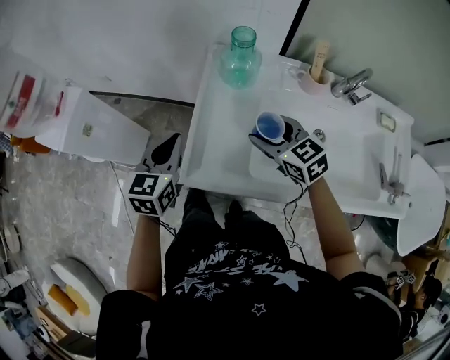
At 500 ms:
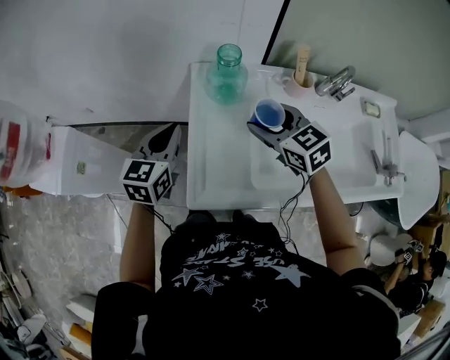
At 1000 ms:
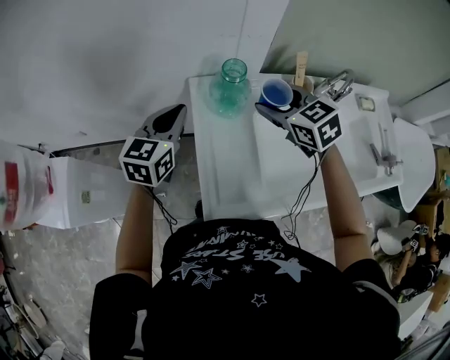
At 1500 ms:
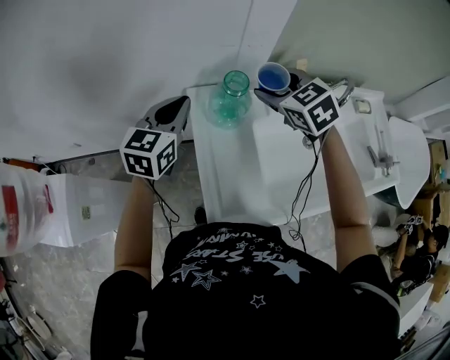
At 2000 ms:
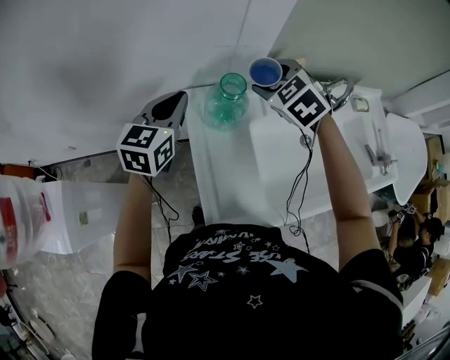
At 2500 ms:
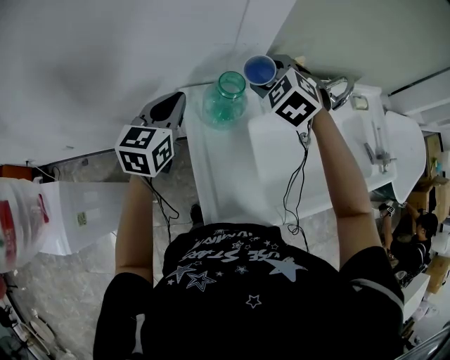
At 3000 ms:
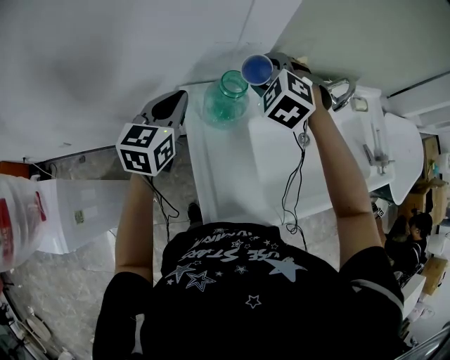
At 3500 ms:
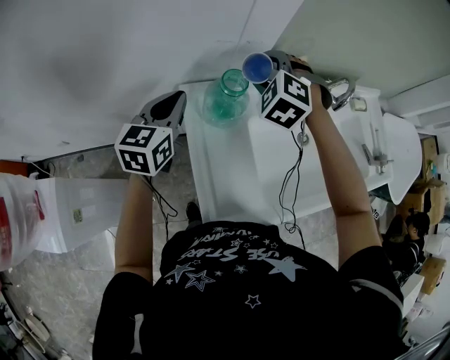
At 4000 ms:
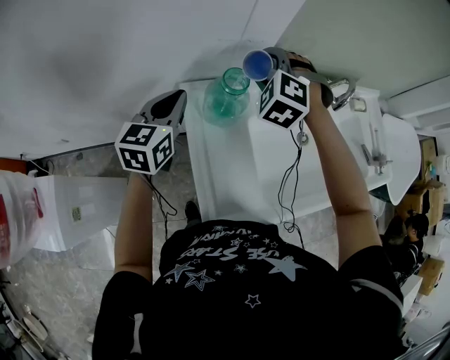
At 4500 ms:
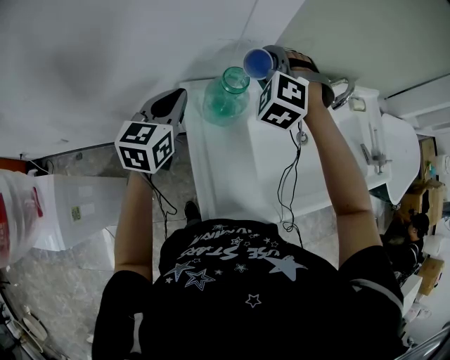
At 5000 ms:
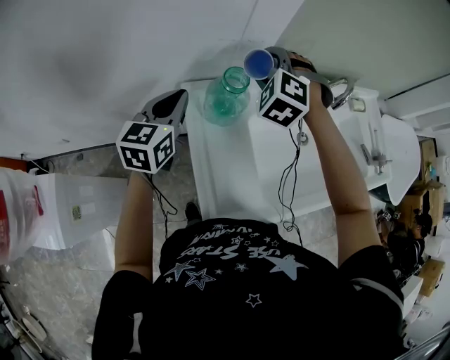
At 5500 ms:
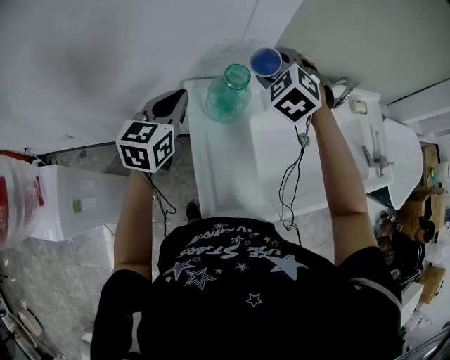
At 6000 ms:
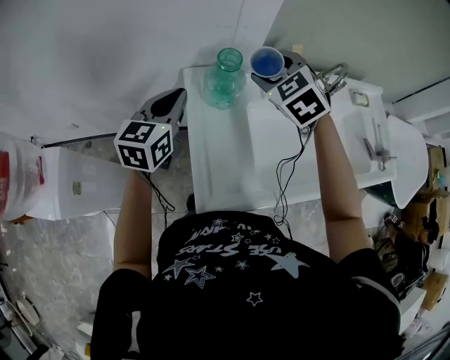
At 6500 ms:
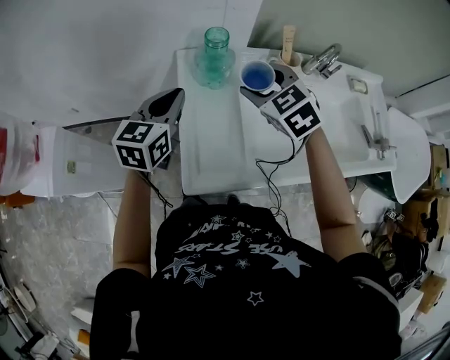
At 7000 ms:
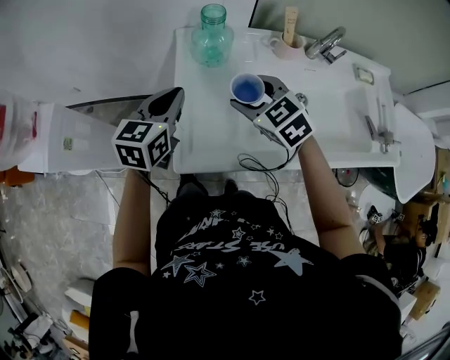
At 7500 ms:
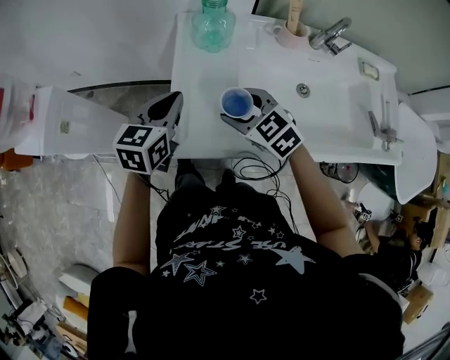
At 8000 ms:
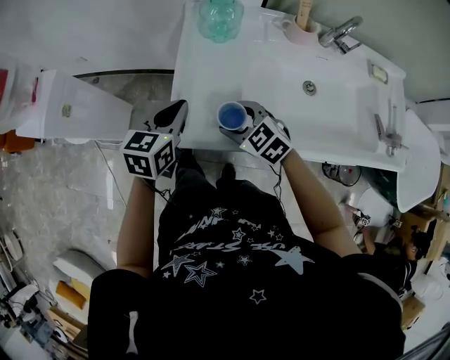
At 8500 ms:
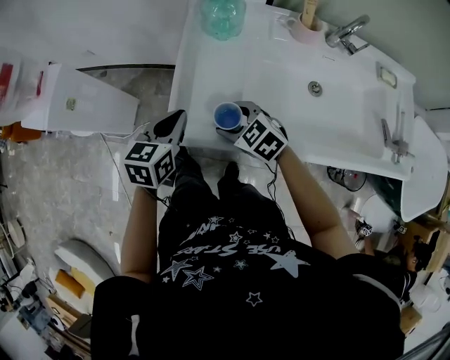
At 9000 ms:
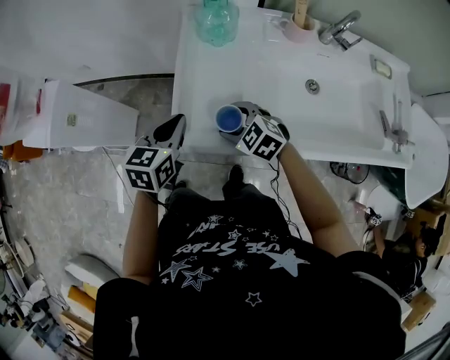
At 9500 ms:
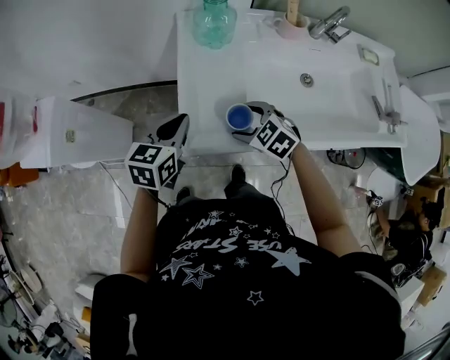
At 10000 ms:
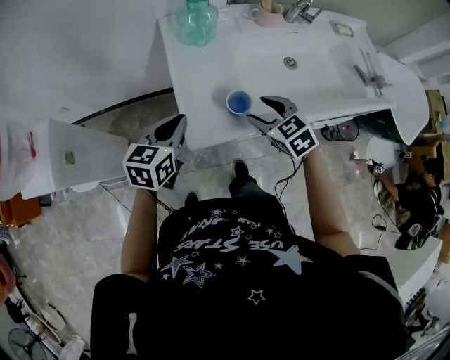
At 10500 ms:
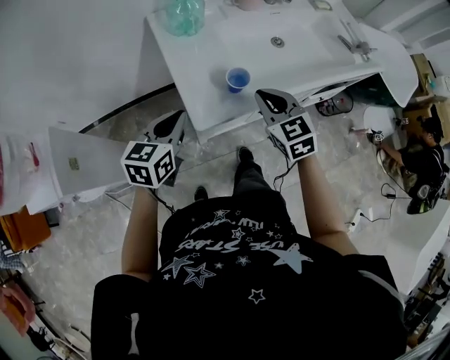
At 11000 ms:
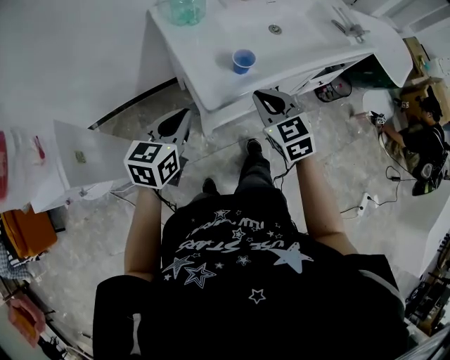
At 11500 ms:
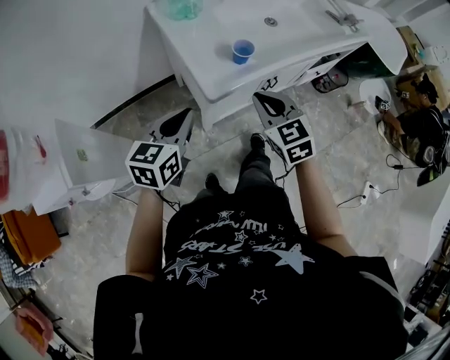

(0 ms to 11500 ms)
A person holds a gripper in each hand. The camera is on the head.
0 ms - 2000 ms: The right gripper shifts by roughly 25 cm, and changes its angle by about 40 degrees. The left gripper changes place by roughly 30 cm, and rotates approximately 30 degrees.
2000 ms - 4000 ms: The right gripper rotates some 30 degrees.
4000 ms - 6000 ms: Both grippers move backward, some 10 cm. The right gripper rotates about 30 degrees.
6000 ms - 7500 ms: Both grippers travel together backward and downward, some 20 cm. The right gripper changes its angle by about 30 degrees.
7500 ms - 9500 ms: The left gripper ends up approximately 5 cm from where it was; the right gripper moves downward, roughly 10 cm.
9500 ms - 11500 ms: The left gripper changes place by about 15 cm, and swivels roughly 30 degrees. The right gripper ends up approximately 20 cm from where it was, changes its angle by roughly 50 degrees, and closes up.

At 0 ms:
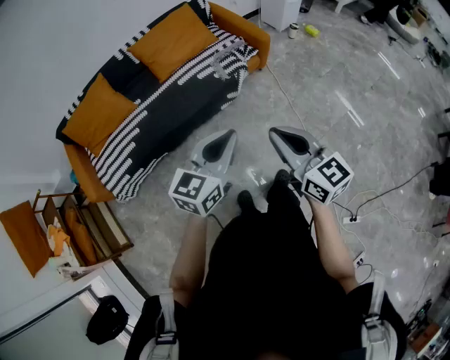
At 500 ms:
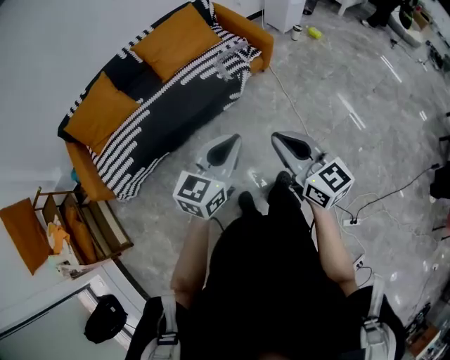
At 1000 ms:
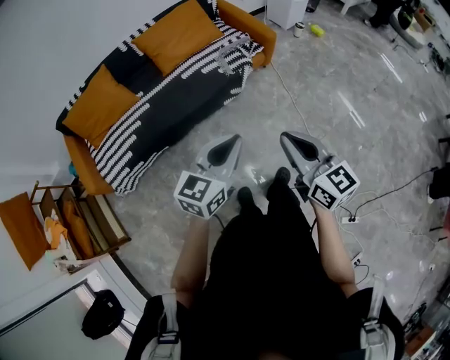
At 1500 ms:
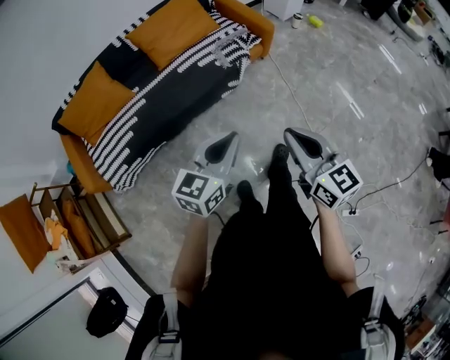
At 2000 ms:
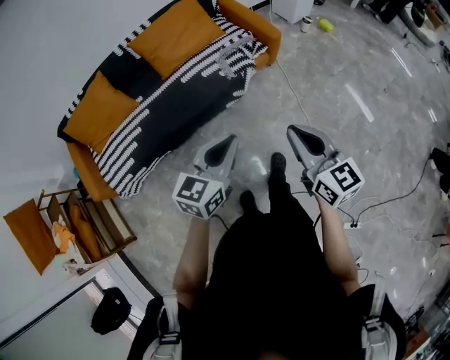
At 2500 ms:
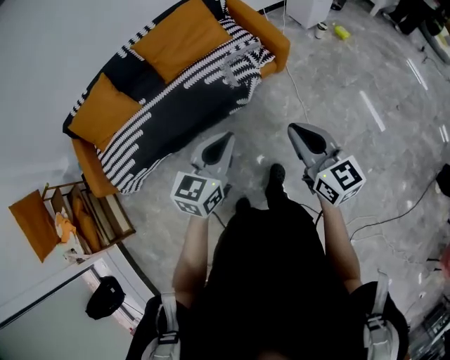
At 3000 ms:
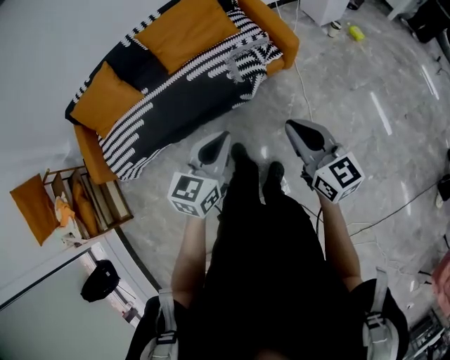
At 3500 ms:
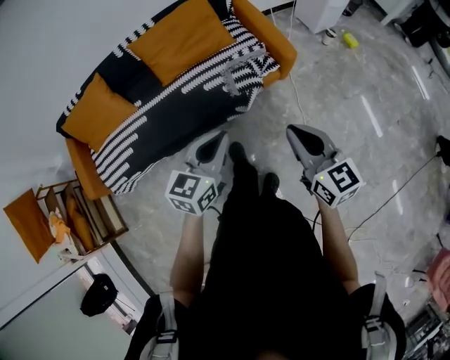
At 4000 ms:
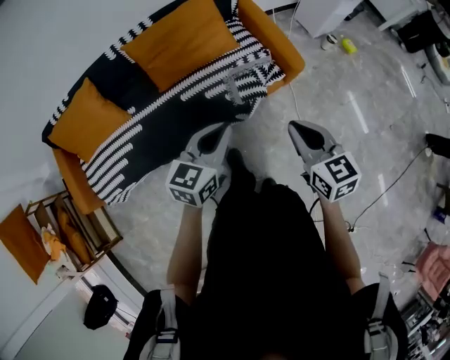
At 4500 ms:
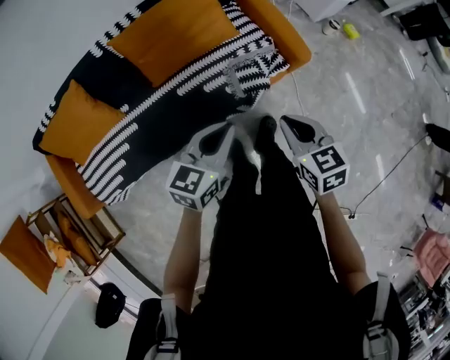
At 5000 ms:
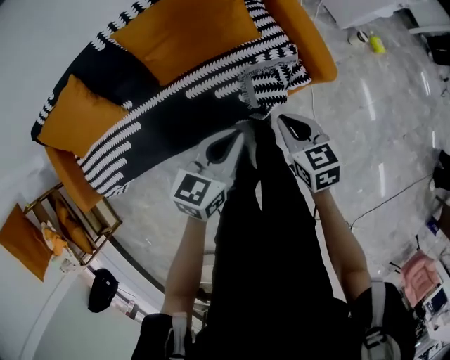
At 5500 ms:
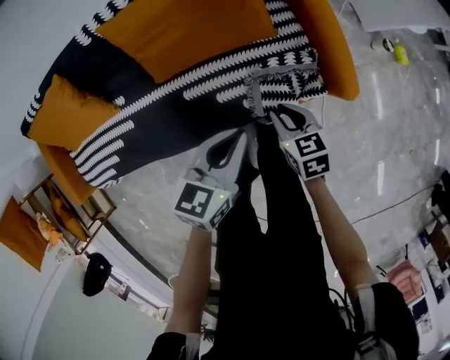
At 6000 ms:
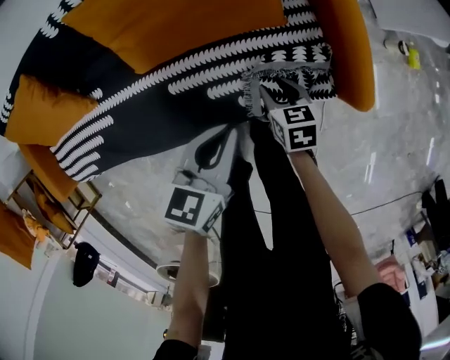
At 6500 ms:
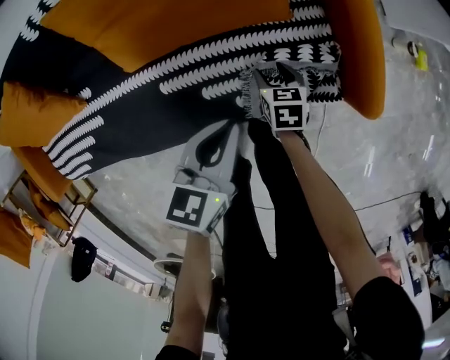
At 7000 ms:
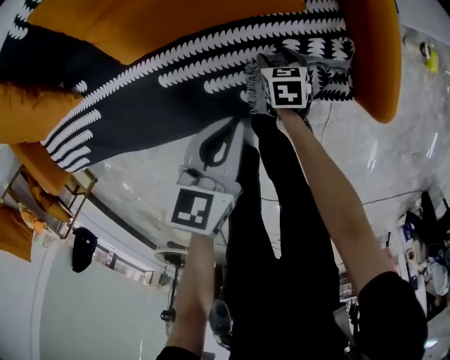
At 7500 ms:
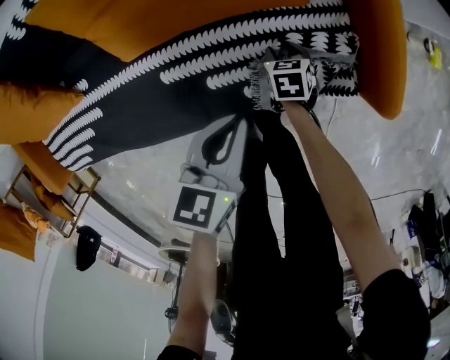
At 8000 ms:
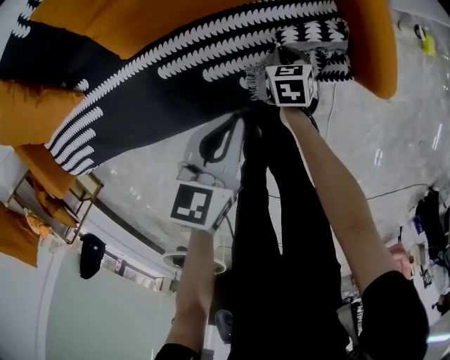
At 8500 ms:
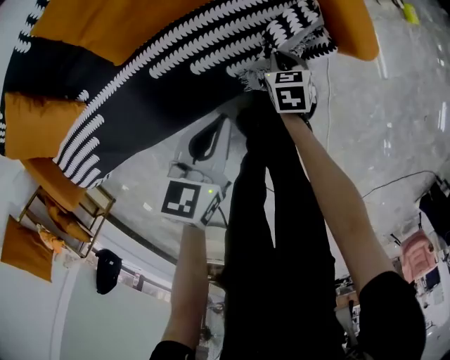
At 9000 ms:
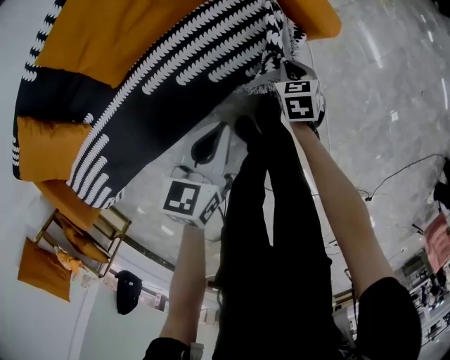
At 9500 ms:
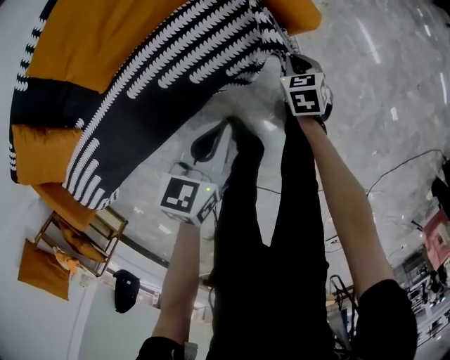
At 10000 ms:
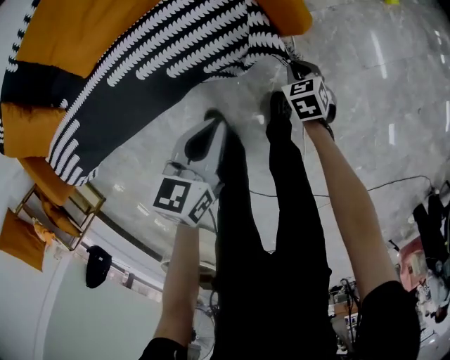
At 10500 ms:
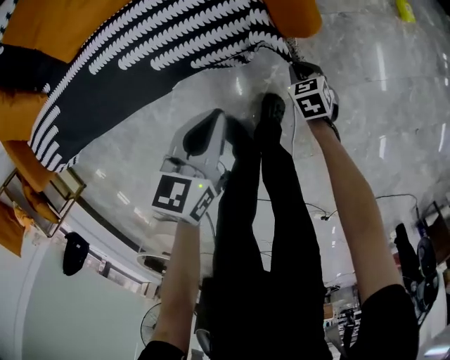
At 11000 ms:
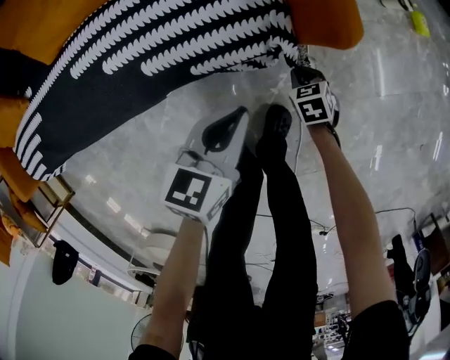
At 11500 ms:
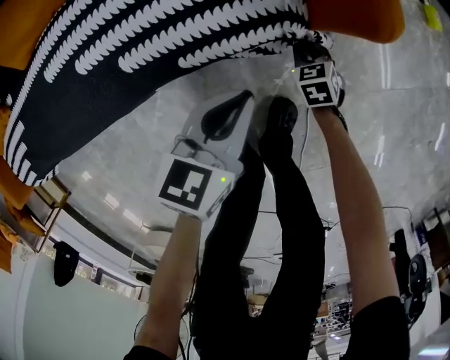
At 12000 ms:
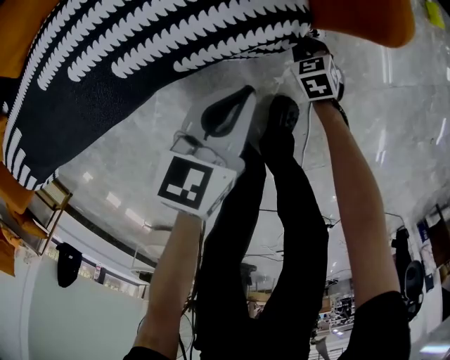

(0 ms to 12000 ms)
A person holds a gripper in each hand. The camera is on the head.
0 ms - 2000 ms: The right gripper shifts some 10 cm forward and to the right. The left gripper moves forward, roughly 10 cm.
2000 ms - 4000 ms: The two grippers go approximately 30 cm forward.
4000 ms - 6000 ms: The right gripper shifts approximately 60 cm downward and forward, changes its angle by approximately 30 degrees, and opens; the left gripper goes approximately 35 cm forward and downward, and turns by approximately 20 degrees.
6000 ms - 8000 ms: The left gripper heads downward, covering roughly 5 cm; the right gripper moves downward, roughly 15 cm, and closes.
8000 ms - 10000 ms: The right gripper moves to the right and backward, some 20 cm; the left gripper heads to the right and backward, covering about 10 cm.
10000 ms - 12000 ms: Both grippers move downward, approximately 25 cm.

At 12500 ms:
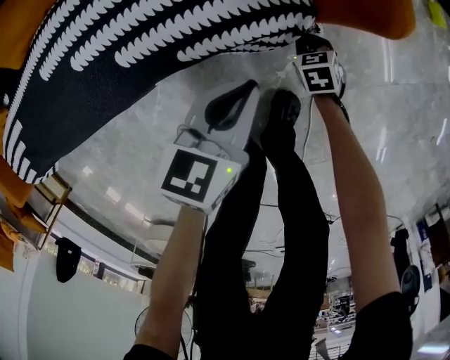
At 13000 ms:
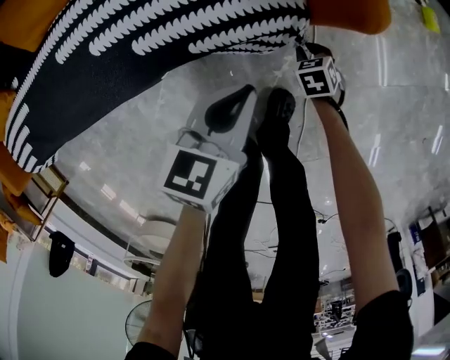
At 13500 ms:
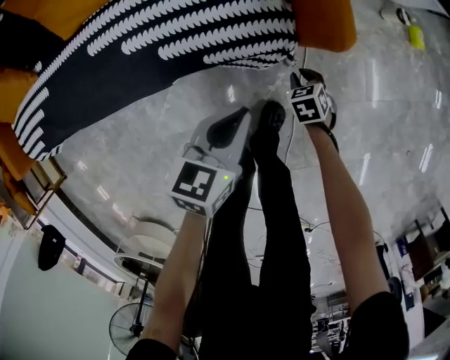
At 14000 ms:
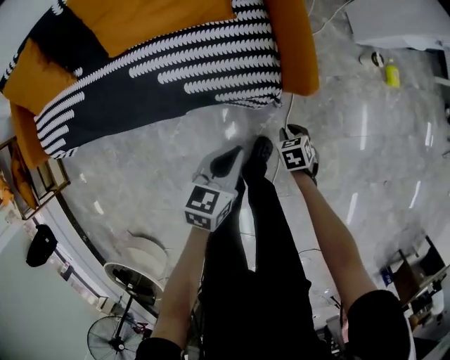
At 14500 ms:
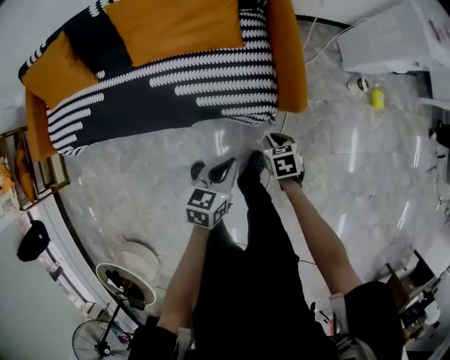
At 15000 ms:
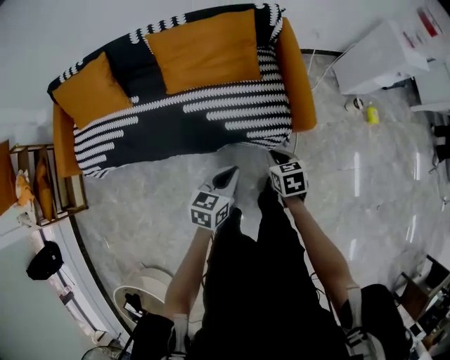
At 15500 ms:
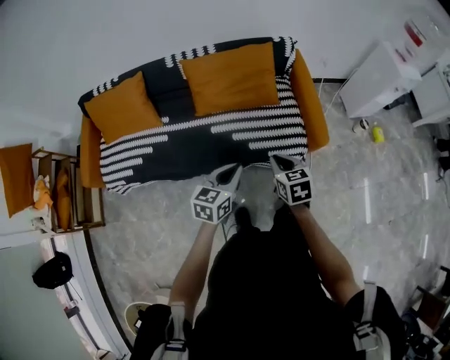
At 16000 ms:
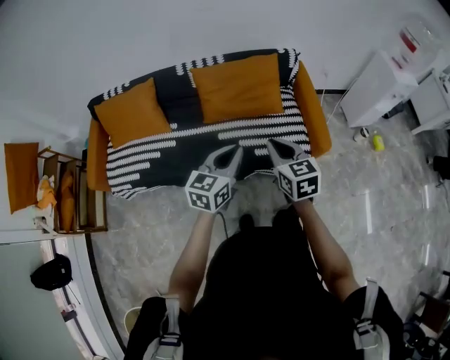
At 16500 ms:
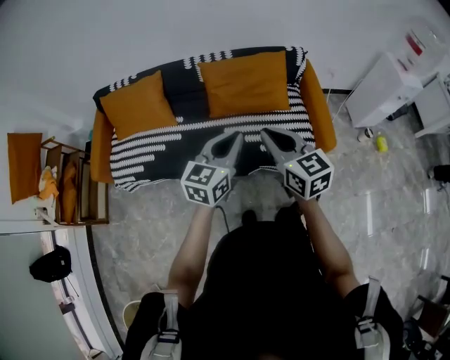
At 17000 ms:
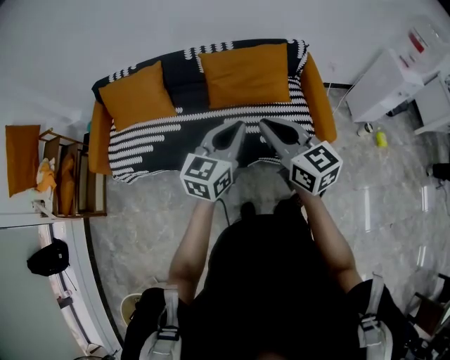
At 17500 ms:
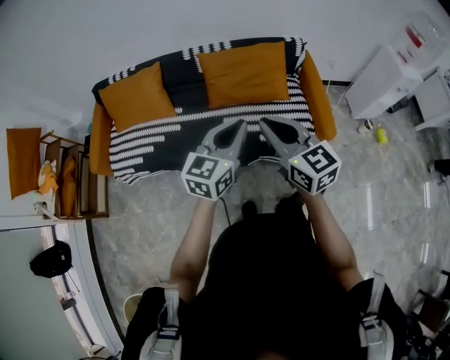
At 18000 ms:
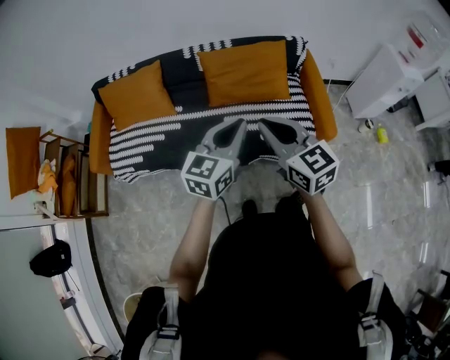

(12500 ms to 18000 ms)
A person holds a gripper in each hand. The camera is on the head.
12500 ms - 14500 ms: The two grippers go approximately 35 cm upward.
14500 ms - 16000 ms: Both grippers travel together upward and to the left, about 40 cm. The left gripper swivels some 30 degrees. Meanwhile the right gripper angles its fingers upward, by about 40 degrees.
16000 ms - 18000 ms: The left gripper goes roughly 5 cm upward; the right gripper travels upward and to the left by about 10 cm, and changes its angle by about 20 degrees.
